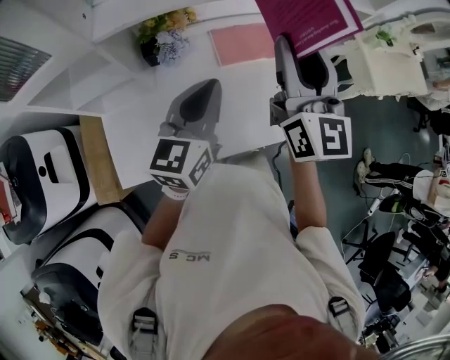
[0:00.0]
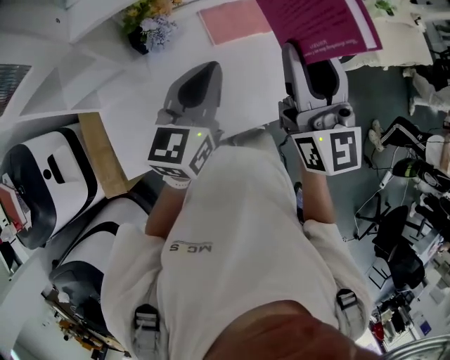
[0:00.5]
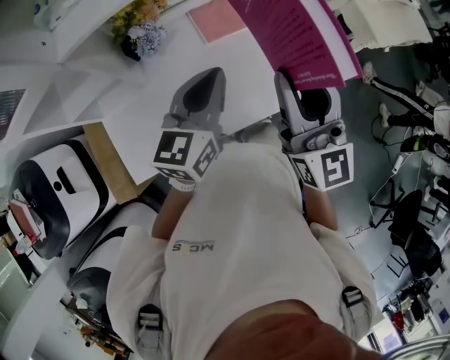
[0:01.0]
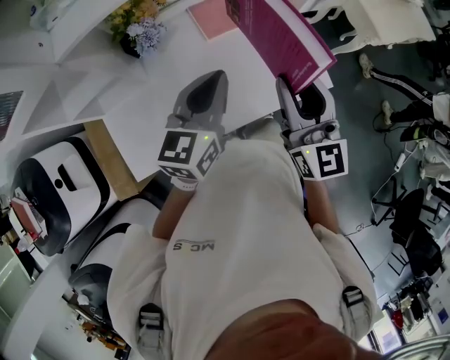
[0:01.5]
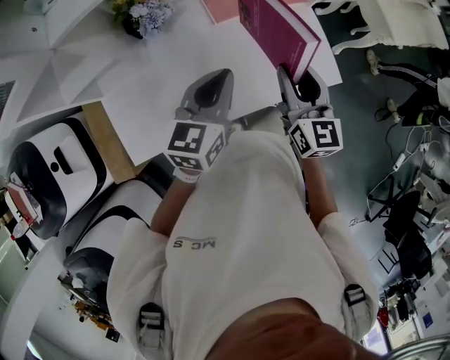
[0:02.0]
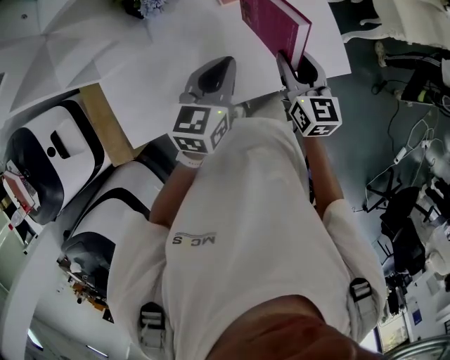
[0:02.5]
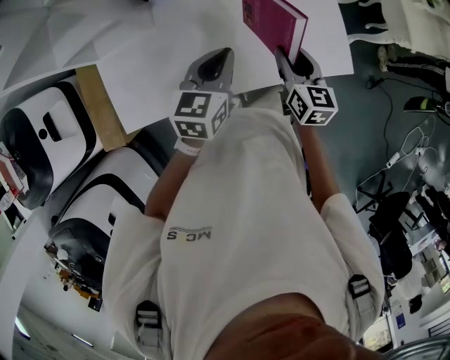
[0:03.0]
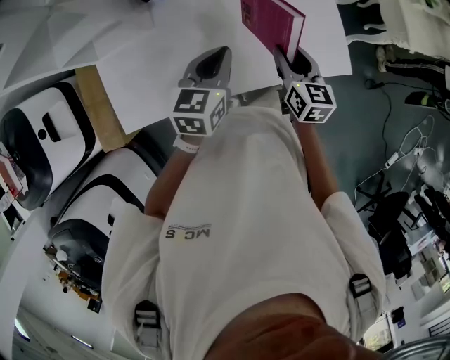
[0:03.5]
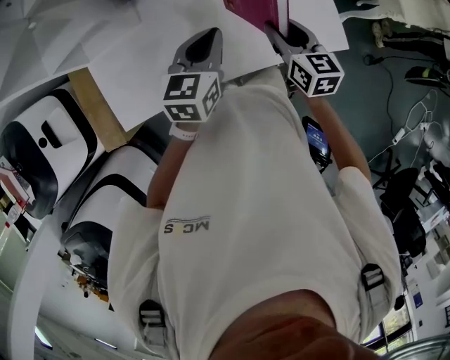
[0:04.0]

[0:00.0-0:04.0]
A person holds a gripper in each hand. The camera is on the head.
0:00.0 to 0:02.0: The left gripper heads downward and to the right, covering about 15 cm. Meanwhile the right gripper goes roughly 20 cm downward, and rotates about 20 degrees.
0:02.0 to 0:04.0: Both grippers move downward, about 10 cm. The right gripper swivels approximately 20 degrees.

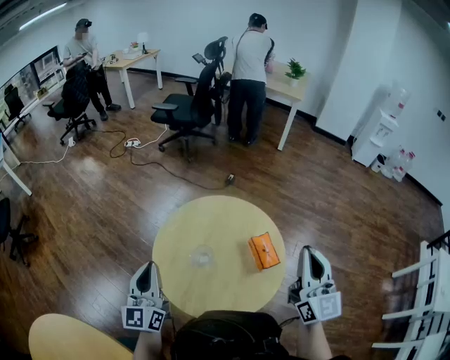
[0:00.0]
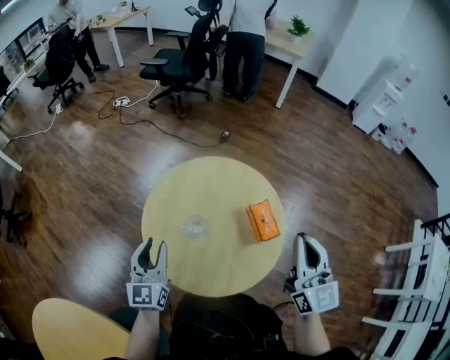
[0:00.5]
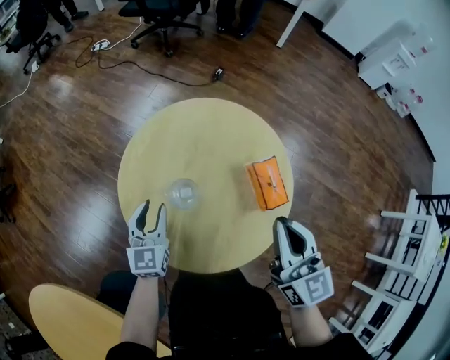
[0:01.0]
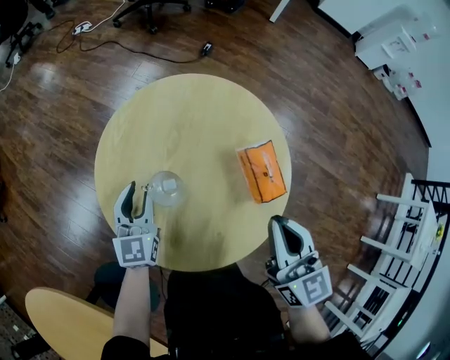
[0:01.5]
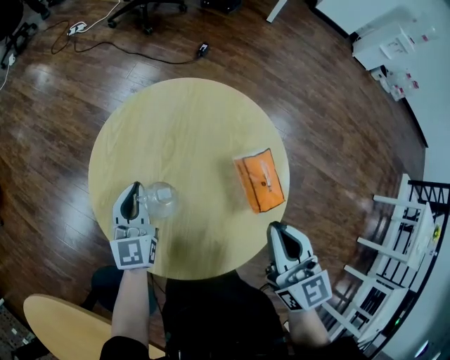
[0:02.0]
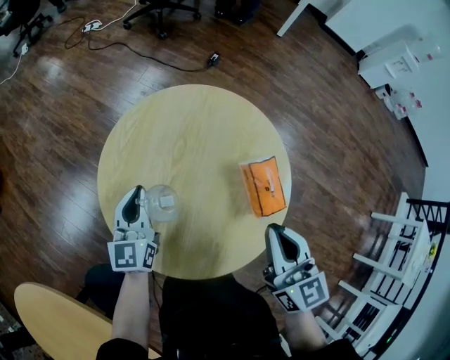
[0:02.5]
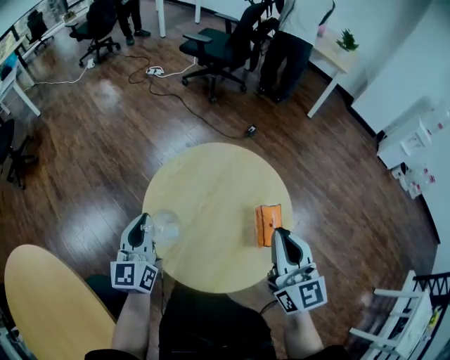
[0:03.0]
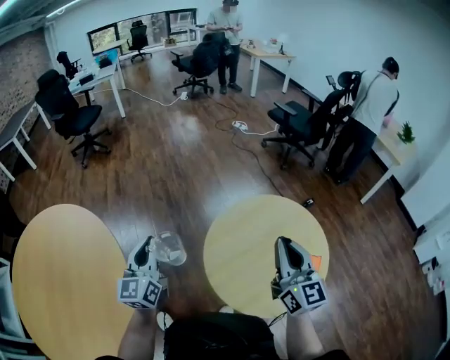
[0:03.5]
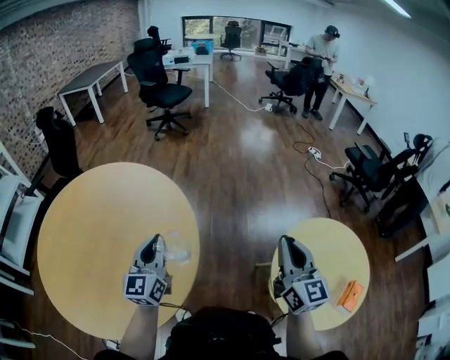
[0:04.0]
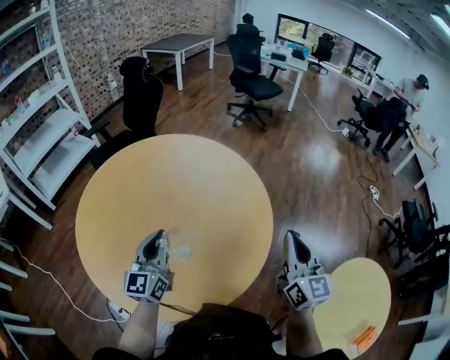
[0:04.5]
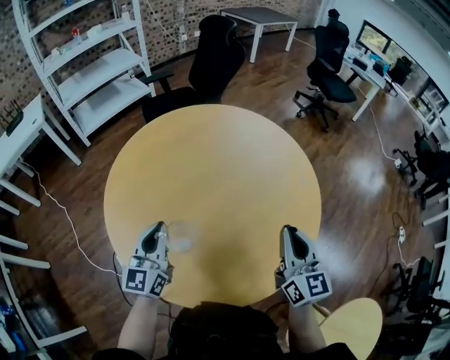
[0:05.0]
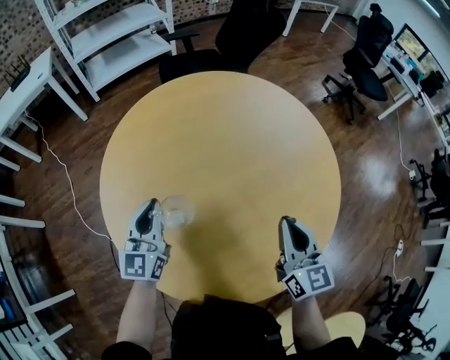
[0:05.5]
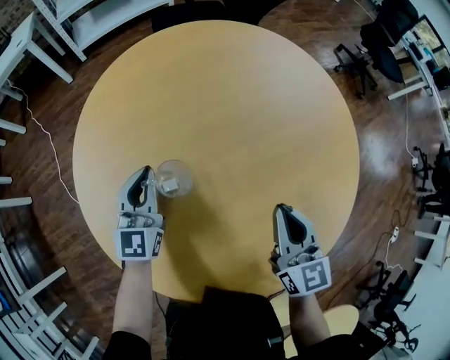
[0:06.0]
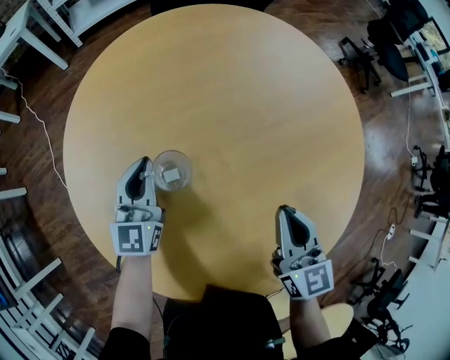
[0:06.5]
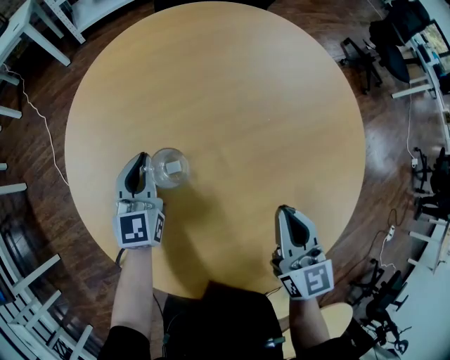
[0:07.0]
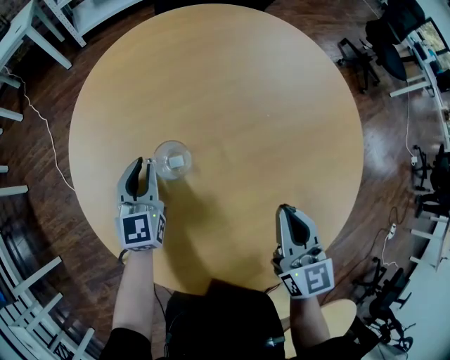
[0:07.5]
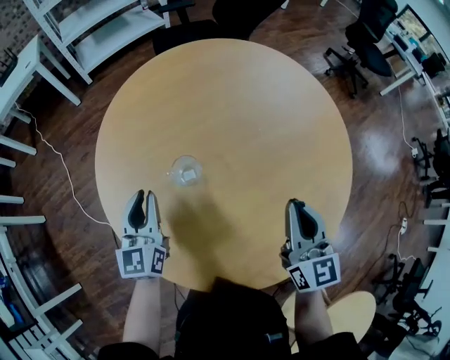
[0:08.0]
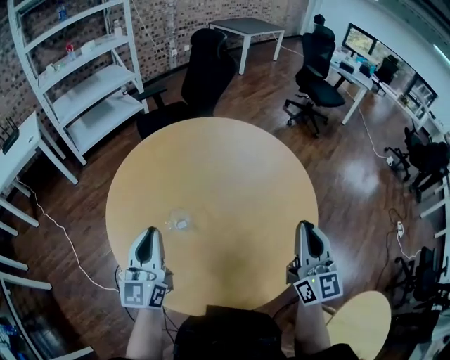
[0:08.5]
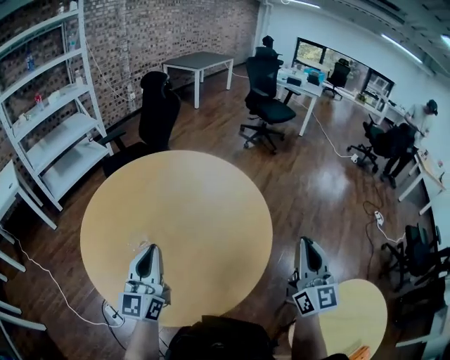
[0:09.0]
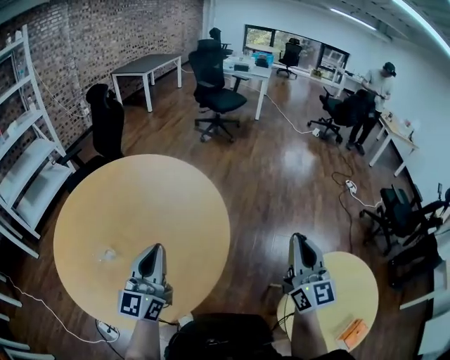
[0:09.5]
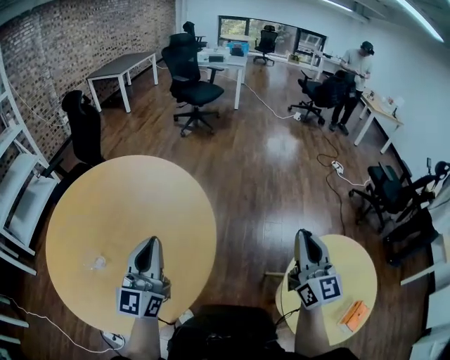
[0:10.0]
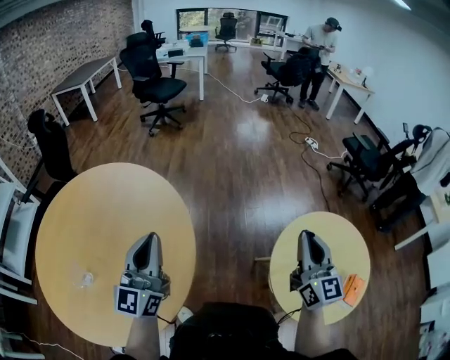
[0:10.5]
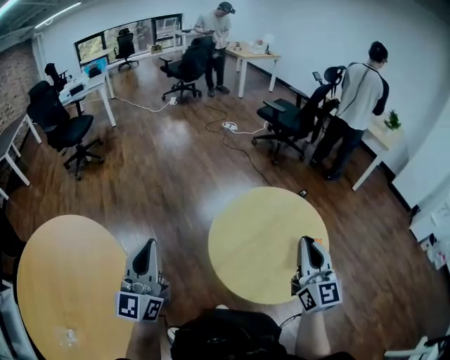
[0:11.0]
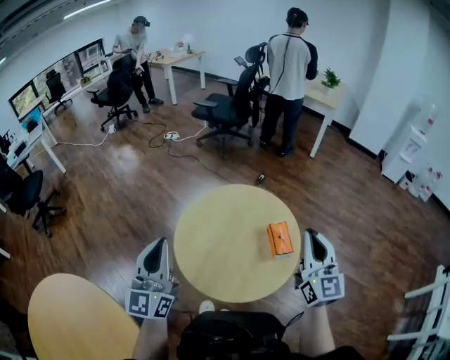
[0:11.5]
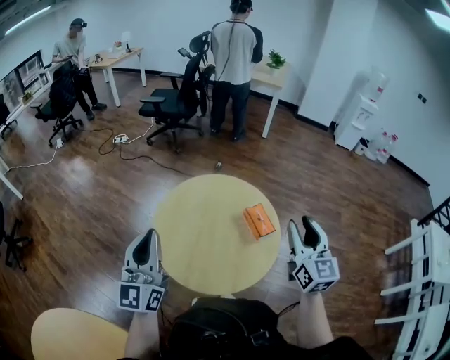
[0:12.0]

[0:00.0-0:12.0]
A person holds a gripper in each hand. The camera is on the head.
0:00.0 to 0:02.0: The left gripper goes approximately 25 cm downward and forward, swivels about 20 degrees, and opens and closes again. The right gripper moves downward, about 20 cm, and changes its angle by approximately 30 degrees.
0:02.0 to 0:04.0: The left gripper changes place by about 70 cm, and swivels approximately 70 degrees; the right gripper changes place by some 40 cm, and turns by some 60 degrees.
0:04.0 to 0:06.0: The pair of grippers is taken some 50 cm. The right gripper turns by about 60 degrees, while the left gripper rotates approximately 60 degrees.
0:06.0 to 0:08.0: The right gripper is displaced upward by roughly 5 cm. Meanwhile the left gripper shifts about 10 cm to the left and backward.
0:08.0 to 0:10.0: The left gripper shifts by some 40 cm, and rotates roughly 60 degrees, while the right gripper changes place by approximately 50 cm, and rotates some 50 degrees.
0:10.0 to 0:12.0: The left gripper moves some 50 cm, and swivels roughly 70 degrees. Meanwhile the right gripper ends up approximately 50 cm from where it was, and turns by roughly 80 degrees.

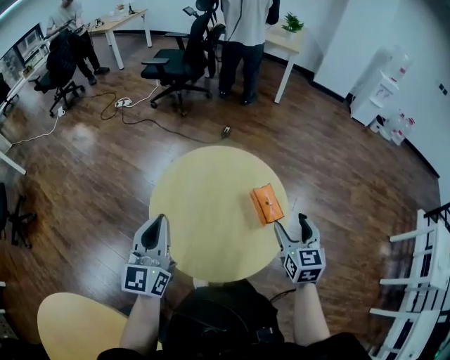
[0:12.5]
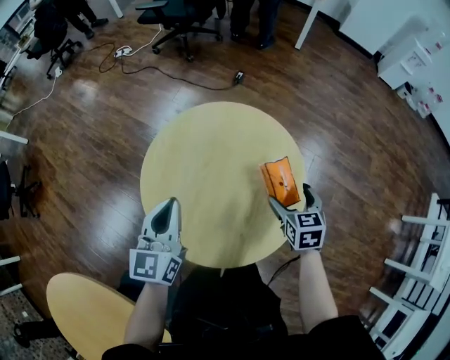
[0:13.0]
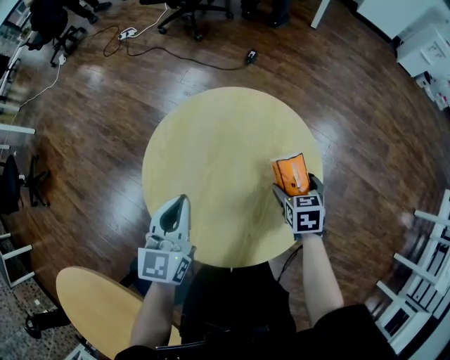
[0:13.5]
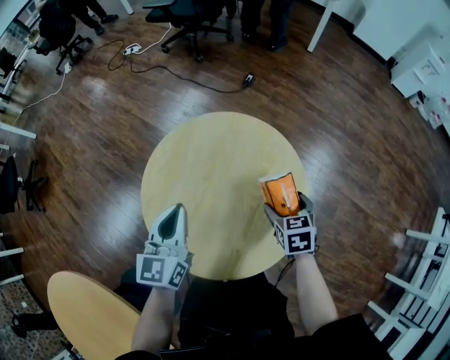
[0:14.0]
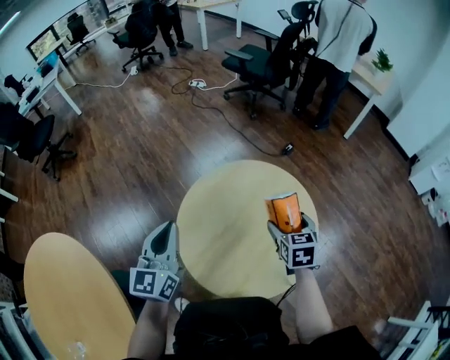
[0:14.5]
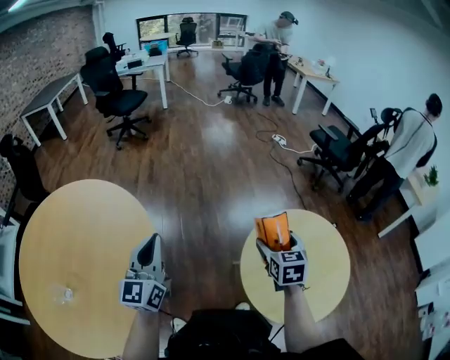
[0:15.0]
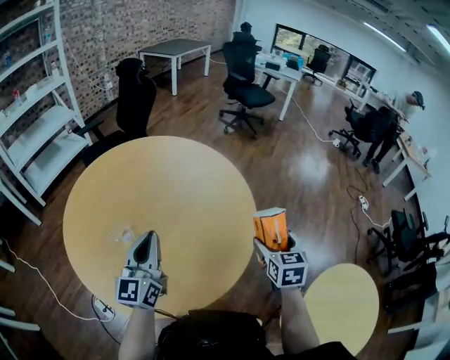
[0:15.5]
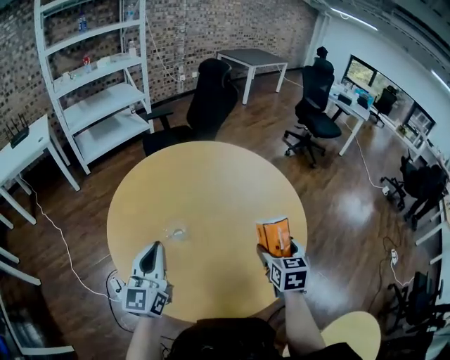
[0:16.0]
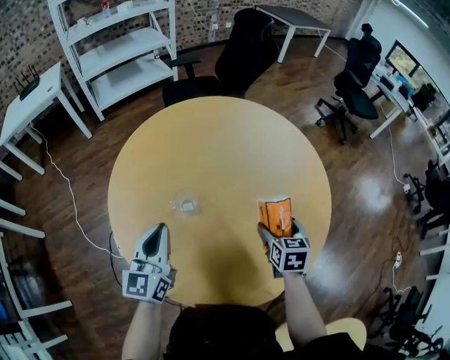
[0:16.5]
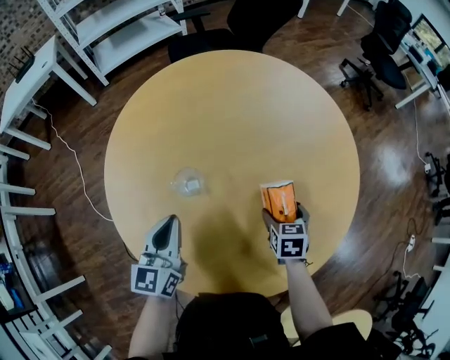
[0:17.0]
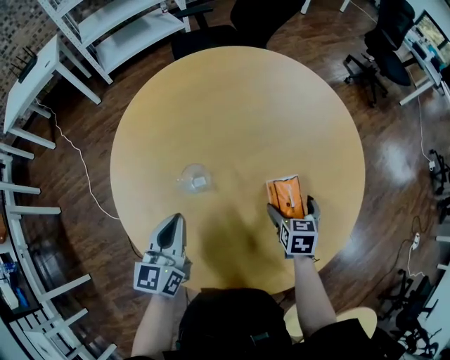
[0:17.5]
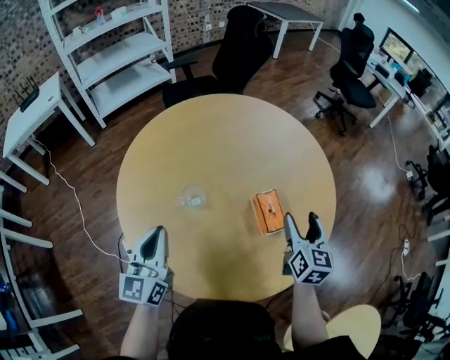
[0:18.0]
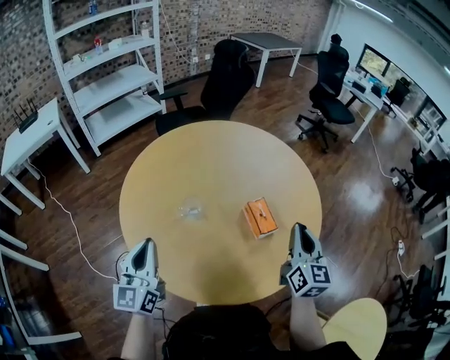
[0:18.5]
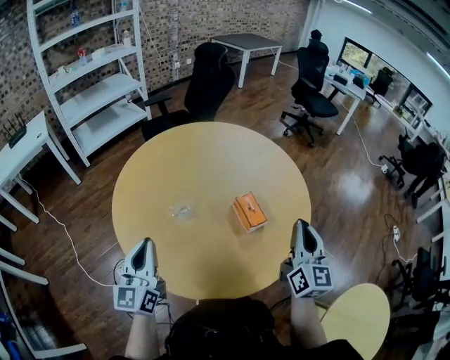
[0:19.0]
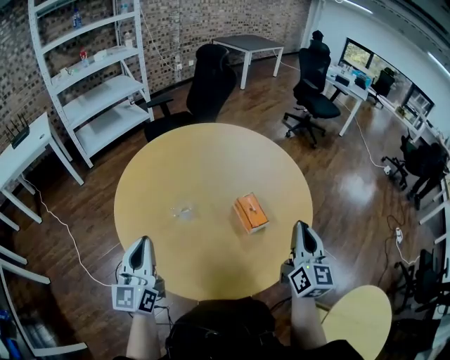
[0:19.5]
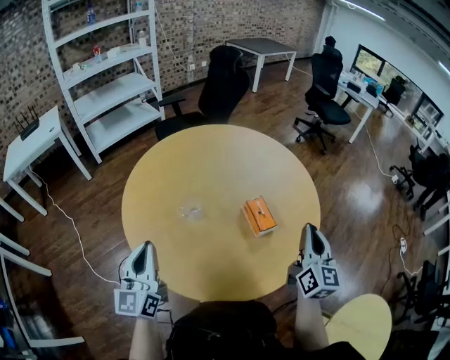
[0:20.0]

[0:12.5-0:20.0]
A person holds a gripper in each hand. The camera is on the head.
0:12.5 to 0:14.5: The right gripper goes downward and returns, about 20 cm each way, and turns by some 30 degrees. Meanwhile the left gripper travels downward and back again, about 10 cm each way, and changes its angle by approximately 30 degrees.
0:14.5 to 0:16.5: Both grippers are carried about 90 cm. The left gripper changes its angle by roughly 100 degrees; the right gripper swivels about 90 degrees.
0:16.5 to 0:18.0: The right gripper is displaced upward by approximately 10 cm, and changes its angle by roughly 30 degrees. Meanwhile the left gripper goes downward and returns, roughly 10 cm each way.
0:18.0 to 0:20.0: The left gripper travels backward by some 10 cm; the right gripper heads backward and upward, covering approximately 15 cm, and closes.

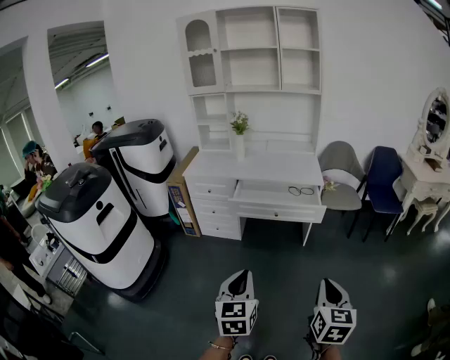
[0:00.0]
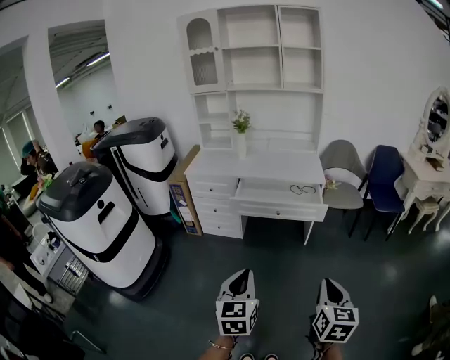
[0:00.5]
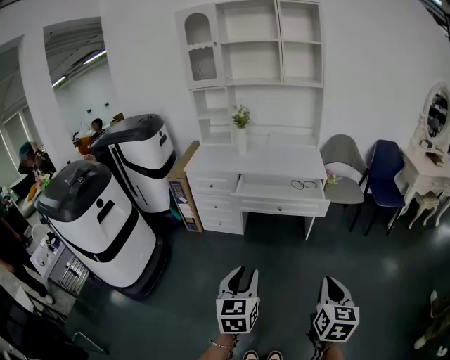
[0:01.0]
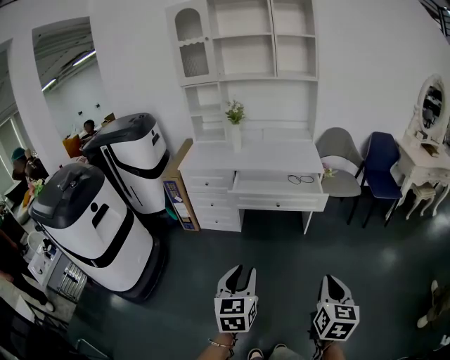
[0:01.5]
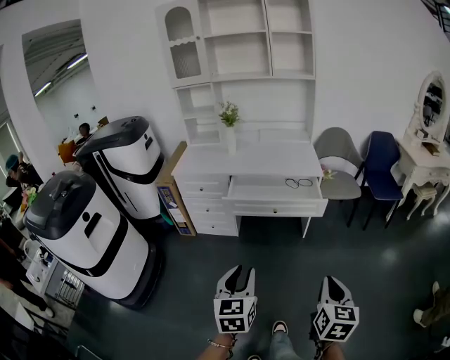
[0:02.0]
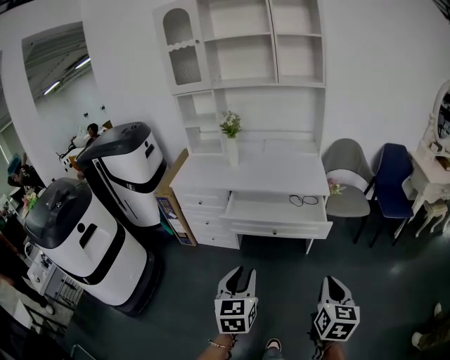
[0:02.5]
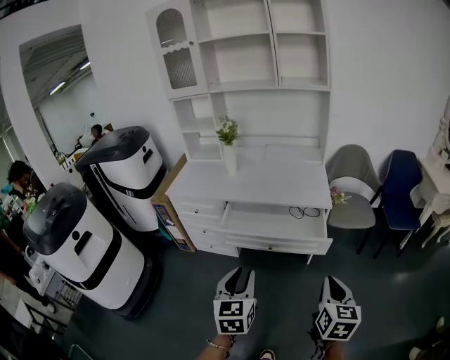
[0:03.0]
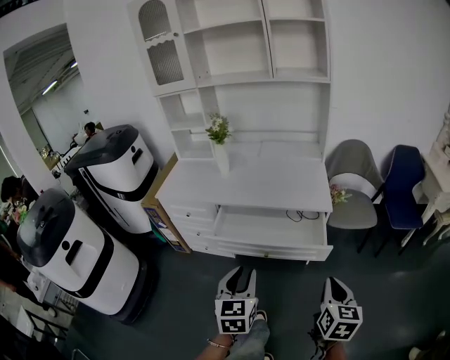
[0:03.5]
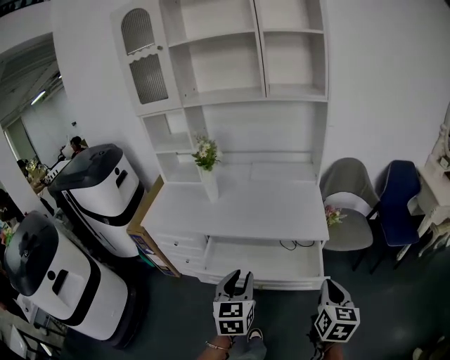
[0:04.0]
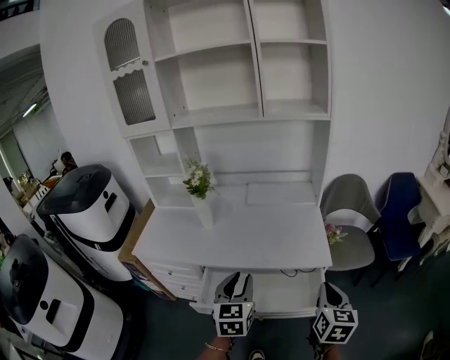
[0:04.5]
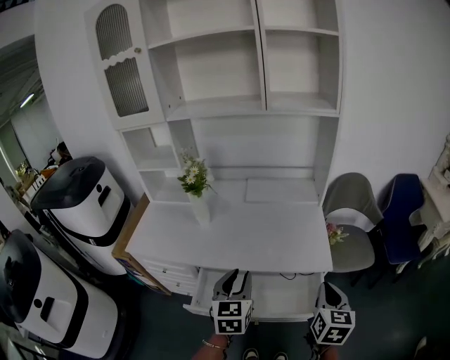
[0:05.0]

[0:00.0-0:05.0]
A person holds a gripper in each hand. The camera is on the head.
0:00.0 to 0:02.5: The grippers both shift forward by about 20 cm. The left gripper opens.
0:02.5 to 0:05.0: The pair of grippers is taken forward, about 40 cm.
